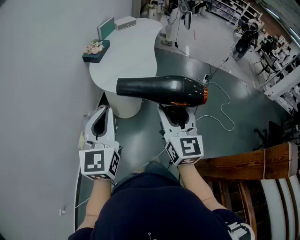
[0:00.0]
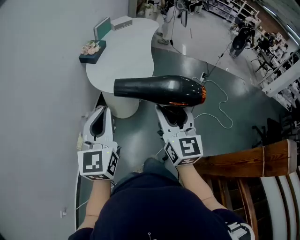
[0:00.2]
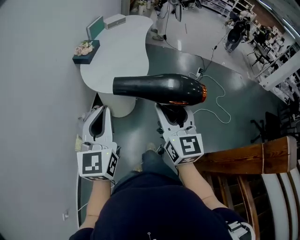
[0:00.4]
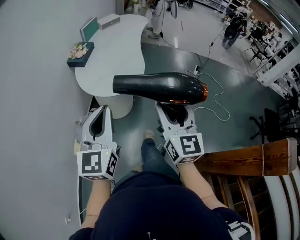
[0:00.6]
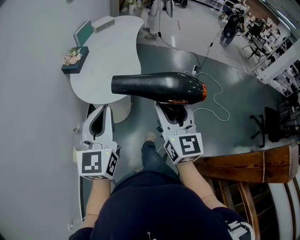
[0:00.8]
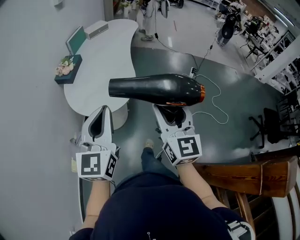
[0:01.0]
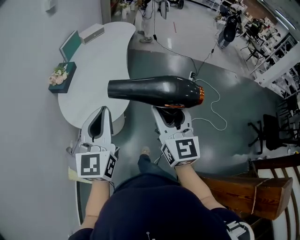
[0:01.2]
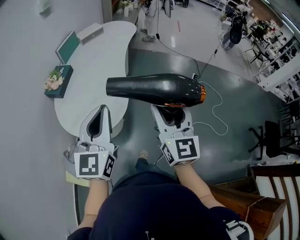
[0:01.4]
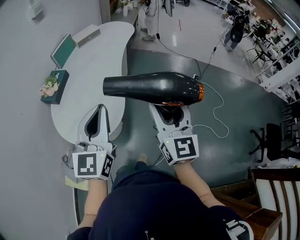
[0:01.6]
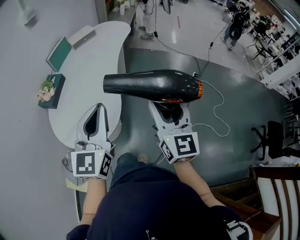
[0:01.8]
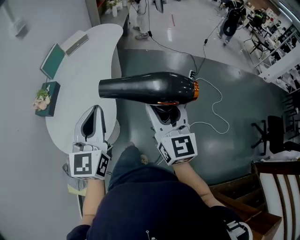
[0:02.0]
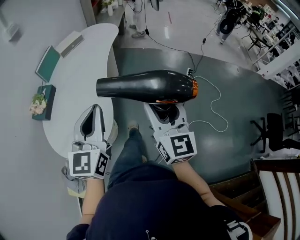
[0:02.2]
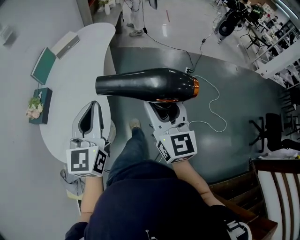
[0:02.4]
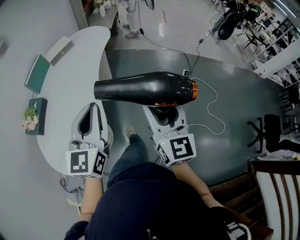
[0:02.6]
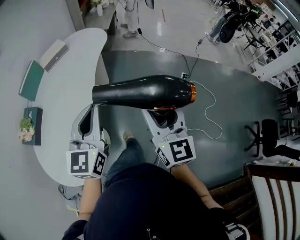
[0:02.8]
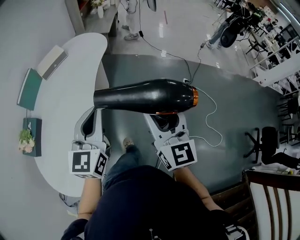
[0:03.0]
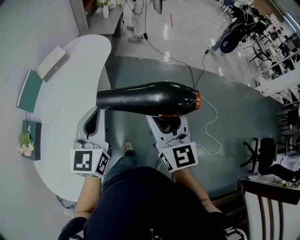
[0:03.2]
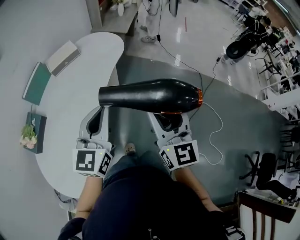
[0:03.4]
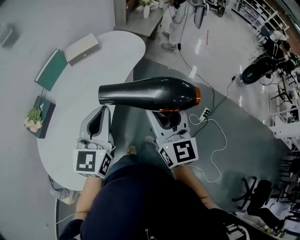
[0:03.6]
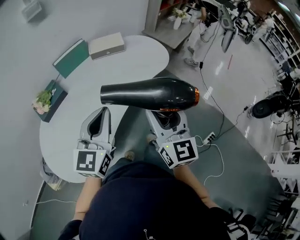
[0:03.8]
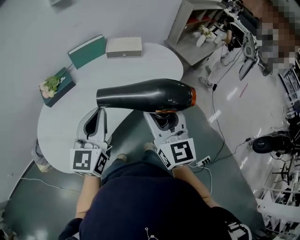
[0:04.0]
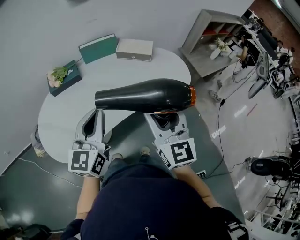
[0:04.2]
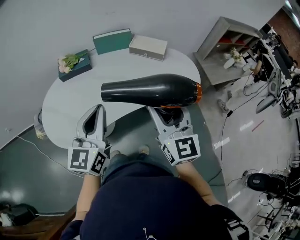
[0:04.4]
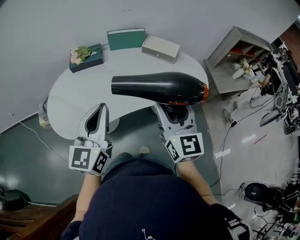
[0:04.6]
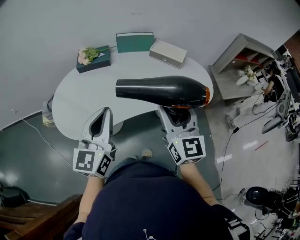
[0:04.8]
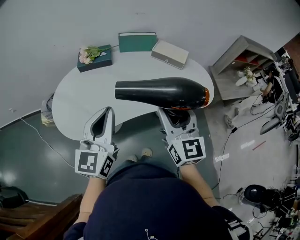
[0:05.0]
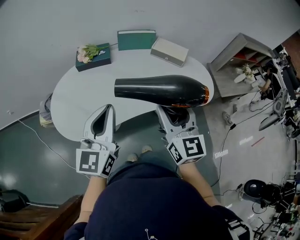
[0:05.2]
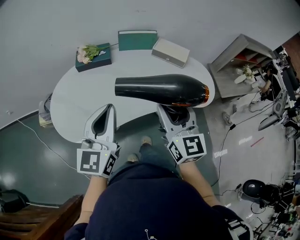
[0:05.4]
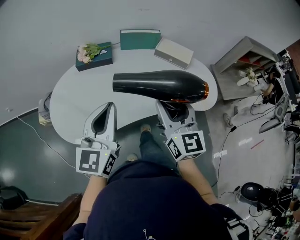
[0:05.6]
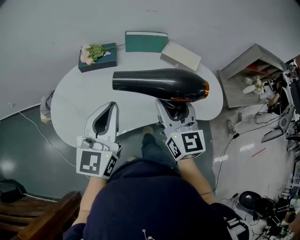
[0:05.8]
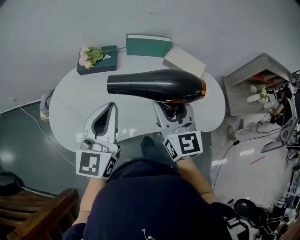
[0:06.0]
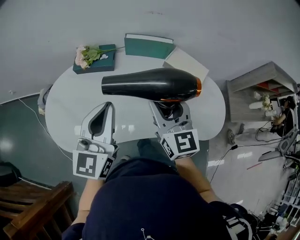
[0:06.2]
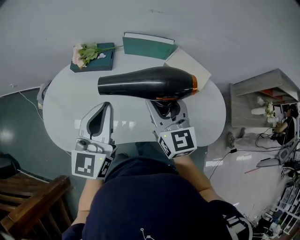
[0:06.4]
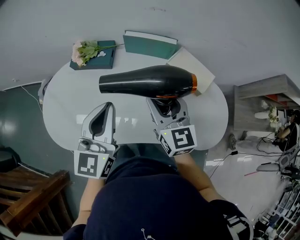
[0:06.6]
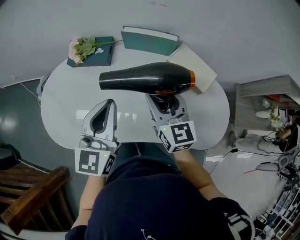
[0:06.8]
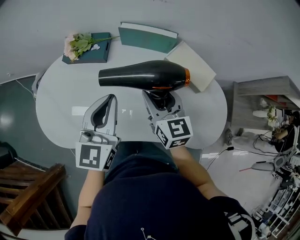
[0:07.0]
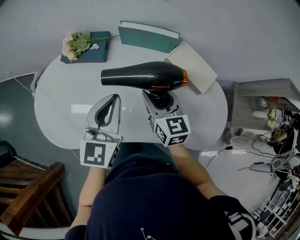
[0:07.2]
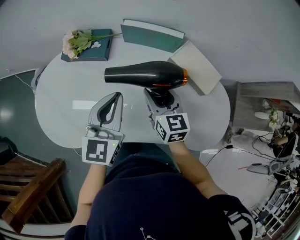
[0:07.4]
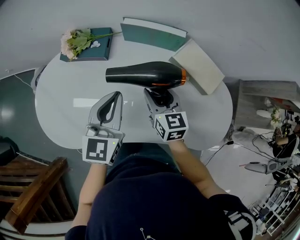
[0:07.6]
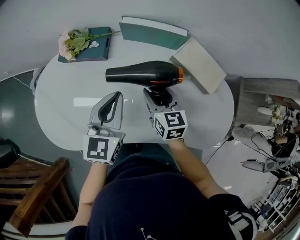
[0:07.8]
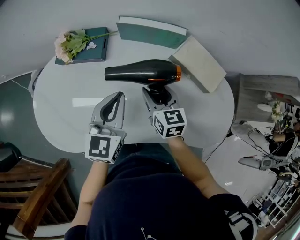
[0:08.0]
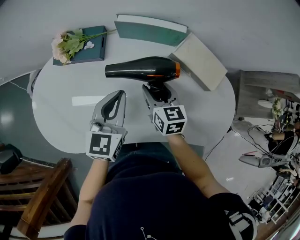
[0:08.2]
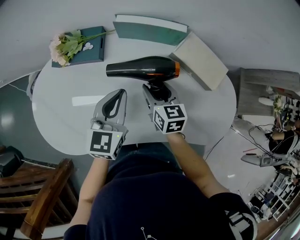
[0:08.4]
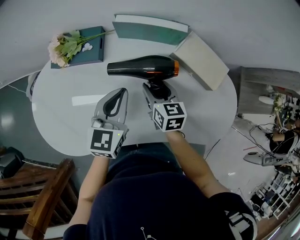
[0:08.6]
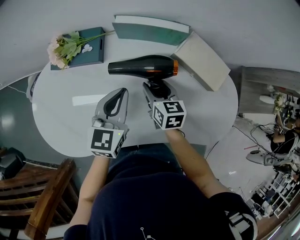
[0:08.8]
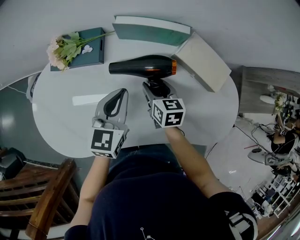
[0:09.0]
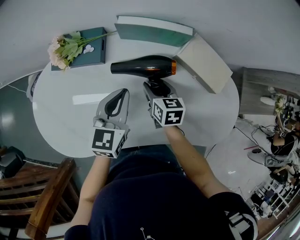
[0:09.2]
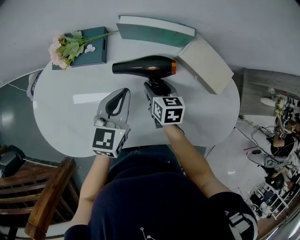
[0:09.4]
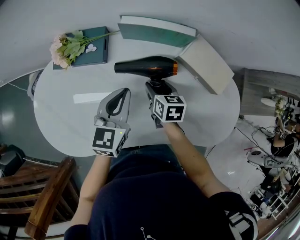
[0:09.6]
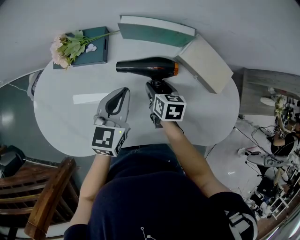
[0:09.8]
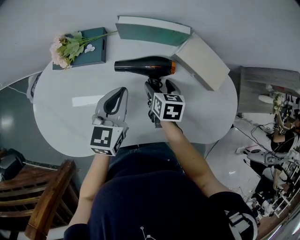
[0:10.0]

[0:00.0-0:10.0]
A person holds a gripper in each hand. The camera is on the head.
0:00.0 to 0:01.4: Both grippers move forward and to the right, some 35 cm.
0:01.4 to 0:02.8: The grippers both shift forward and to the right by about 30 cm.
0:02.8 to 0:04.2: The right gripper changes place by approximately 35 cm, and rotates about 60 degrees. Meanwhile the left gripper moves approximately 20 cm, and rotates some 60 degrees.
0:04.2 to 0:05.8: The right gripper is displaced forward and to the left by about 15 cm. Meanwhile the left gripper is displaced to the left by some 5 cm.
0:05.8 to 0:07.2: The left gripper heads forward, to the right and downward, covering some 25 cm. Meanwhile the right gripper goes about 25 cm forward and downward, and swivels about 30 degrees.
0:07.2 to 0:08.6: The right gripper travels downward by roughly 10 cm; the left gripper shifts roughly 10 cm downward and forward.
0:08.6 to 0:10.0: There are only small adjustments of the grippers.

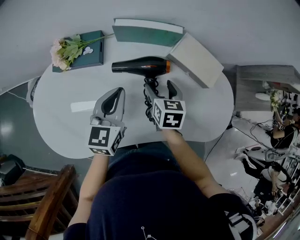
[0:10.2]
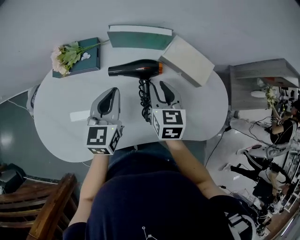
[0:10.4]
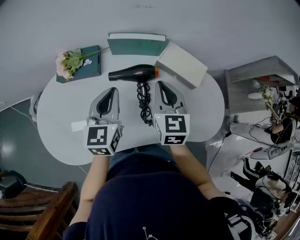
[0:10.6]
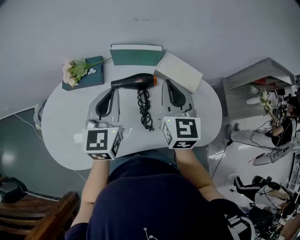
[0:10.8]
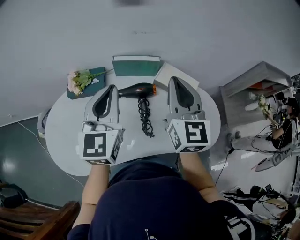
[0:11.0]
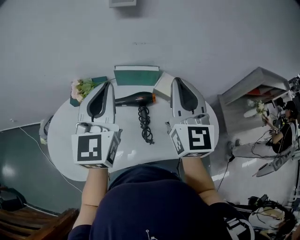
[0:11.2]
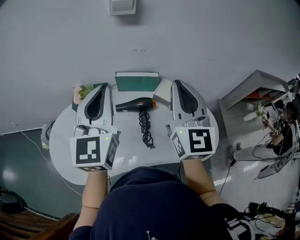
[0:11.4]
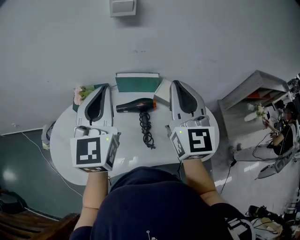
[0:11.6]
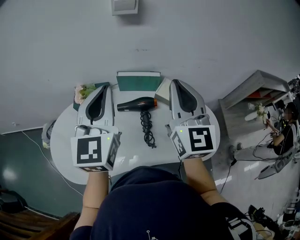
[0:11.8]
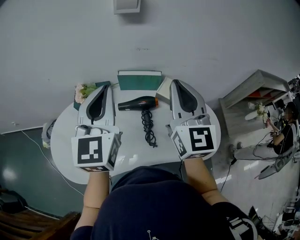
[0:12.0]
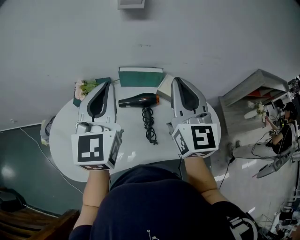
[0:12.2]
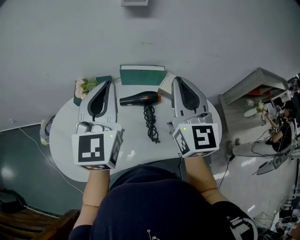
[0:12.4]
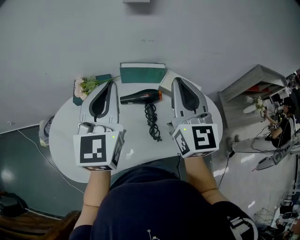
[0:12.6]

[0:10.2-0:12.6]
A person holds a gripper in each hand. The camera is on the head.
0:10.2 to 0:11.4: Both grippers travel together upward, approximately 35 cm. The left gripper swivels approximately 30 degrees. The right gripper tilts its fingers about 50 degrees upward, and closes its fingers.
0:11.4 to 0:12.6: The right gripper shifts by roughly 5 cm.

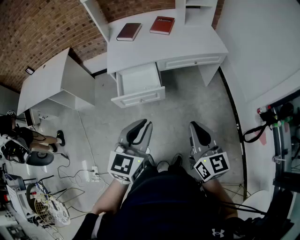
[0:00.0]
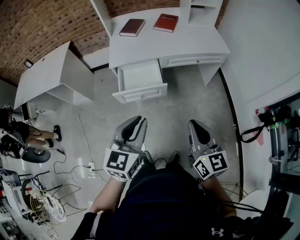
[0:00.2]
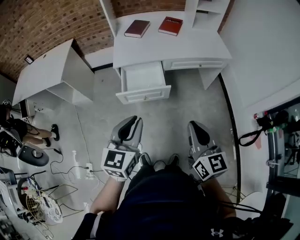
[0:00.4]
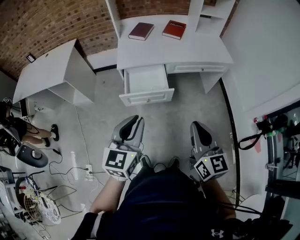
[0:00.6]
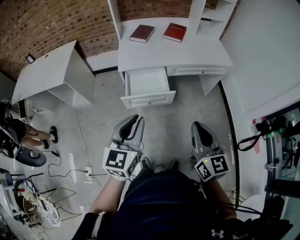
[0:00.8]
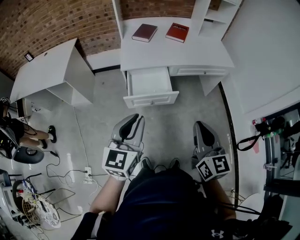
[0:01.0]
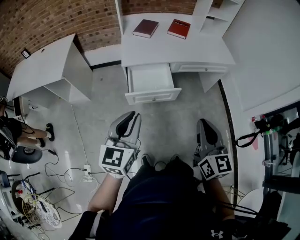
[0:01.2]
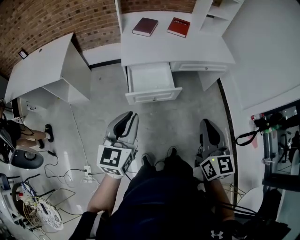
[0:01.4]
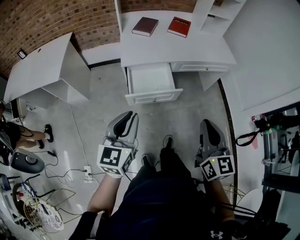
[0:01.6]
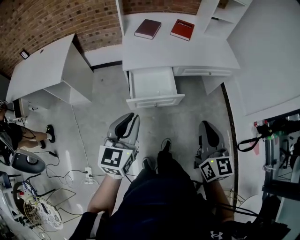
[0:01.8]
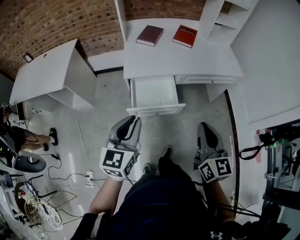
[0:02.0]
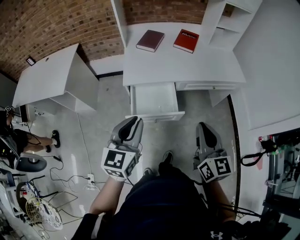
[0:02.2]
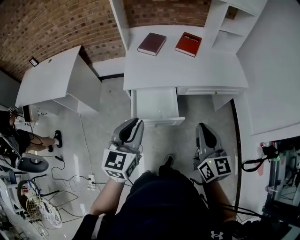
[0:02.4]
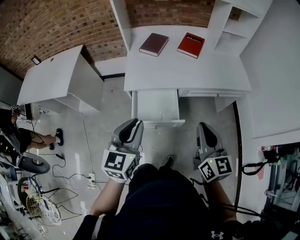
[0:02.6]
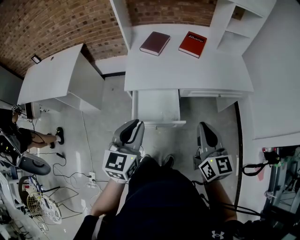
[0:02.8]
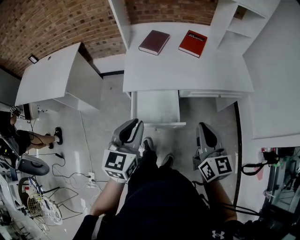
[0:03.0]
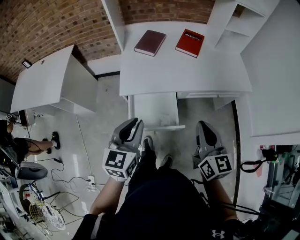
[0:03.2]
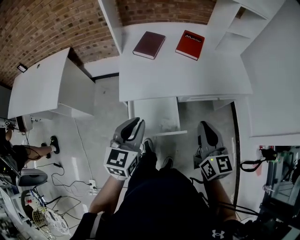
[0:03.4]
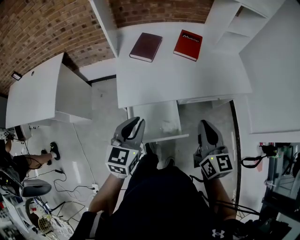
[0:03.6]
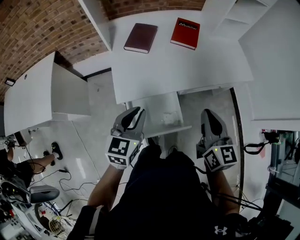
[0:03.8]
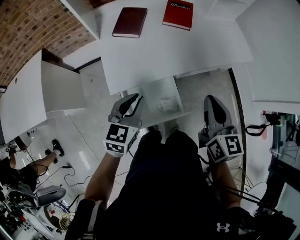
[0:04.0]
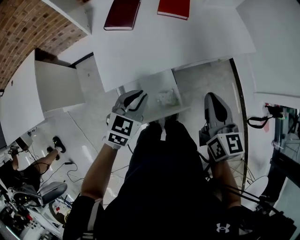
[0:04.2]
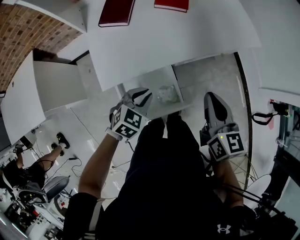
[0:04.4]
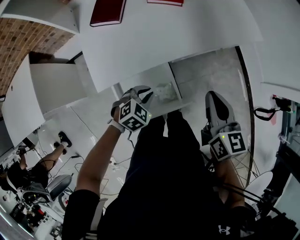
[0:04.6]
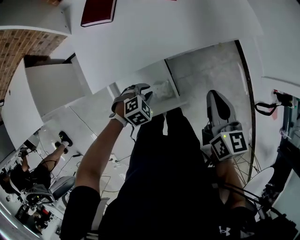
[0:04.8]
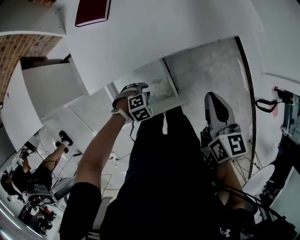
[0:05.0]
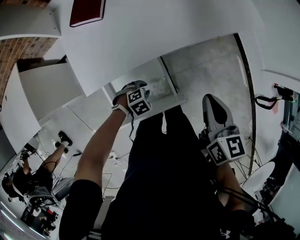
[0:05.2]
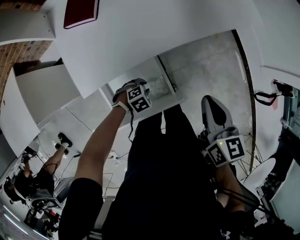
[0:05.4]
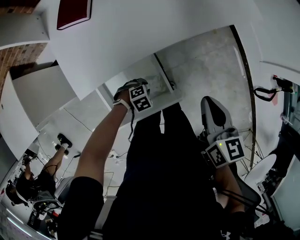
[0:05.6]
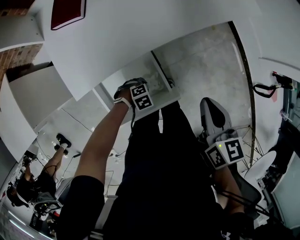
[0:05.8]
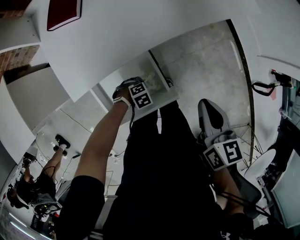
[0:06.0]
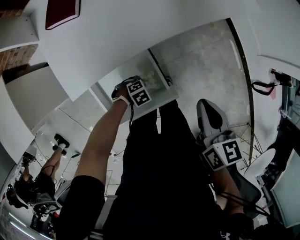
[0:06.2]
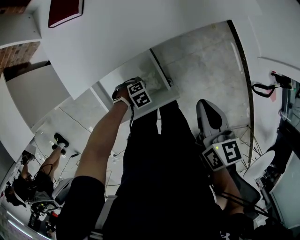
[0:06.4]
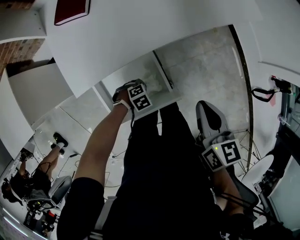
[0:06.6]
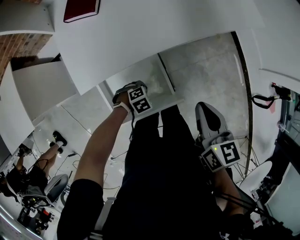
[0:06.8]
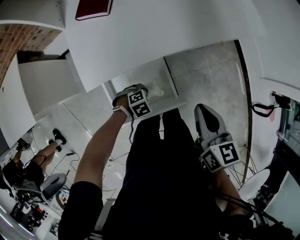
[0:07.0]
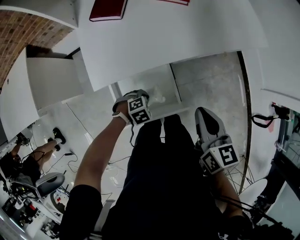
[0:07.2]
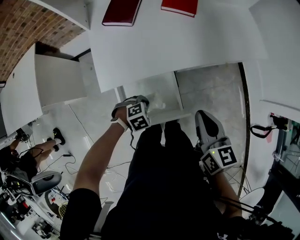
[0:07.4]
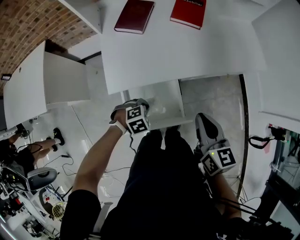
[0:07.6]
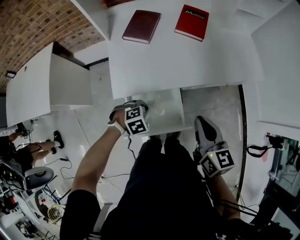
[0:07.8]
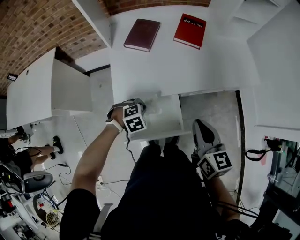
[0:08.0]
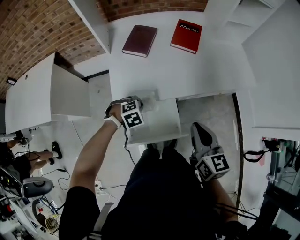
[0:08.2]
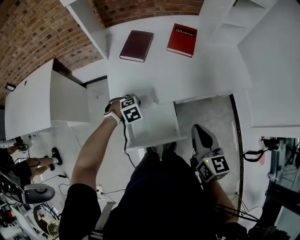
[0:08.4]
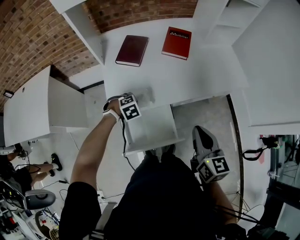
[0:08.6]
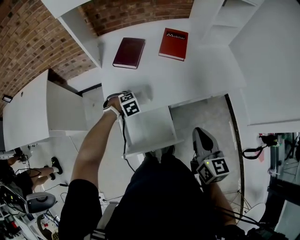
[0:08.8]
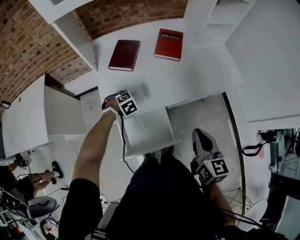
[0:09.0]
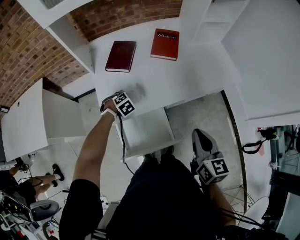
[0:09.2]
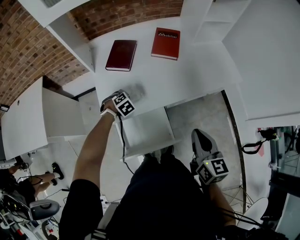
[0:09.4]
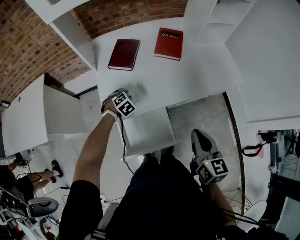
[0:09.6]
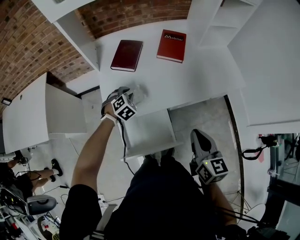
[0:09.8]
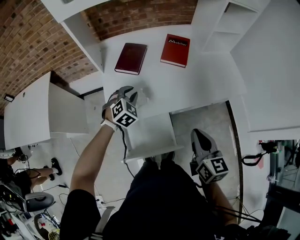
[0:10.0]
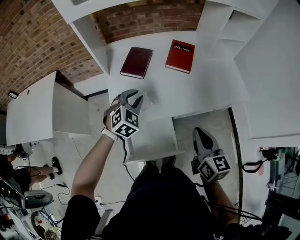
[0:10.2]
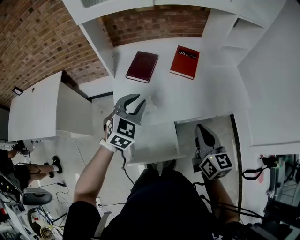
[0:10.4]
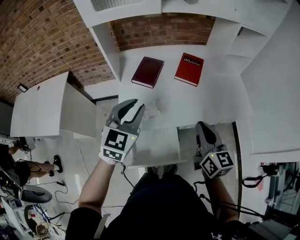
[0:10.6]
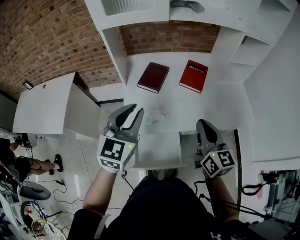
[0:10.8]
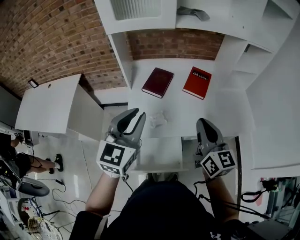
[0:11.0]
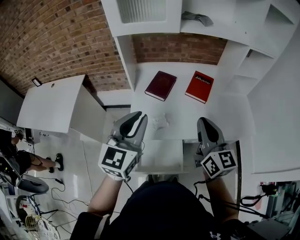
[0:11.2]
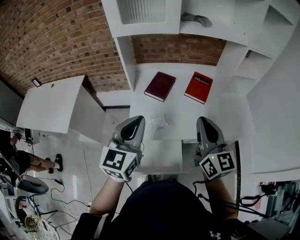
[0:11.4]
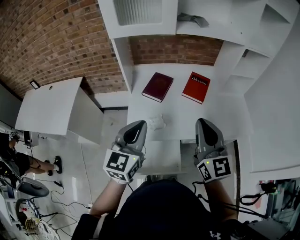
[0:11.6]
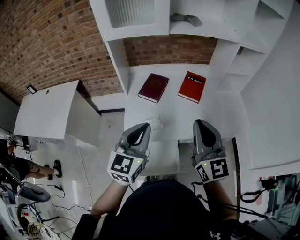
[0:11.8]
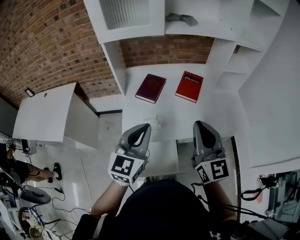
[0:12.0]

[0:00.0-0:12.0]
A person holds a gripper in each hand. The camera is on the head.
0:00.0 to 0:01.6: The left gripper moves to the left, about 25 cm. The right gripper moves to the left, roughly 15 cm.
0:01.6 to 0:03.0: The grippers both shift forward by approximately 20 cm.
0:03.0 to 0:04.4: The right gripper moves approximately 20 cm, and rotates approximately 20 degrees; the left gripper goes about 25 cm downward, and angles its fingers downward, by approximately 30 degrees.
0:04.4 to 0:06.0: The right gripper travels downward by approximately 10 cm, while the left gripper moves downward, roughly 30 cm, and tilts its fingers roughly 30 degrees downward.
0:06.0 to 0:07.6: The left gripper goes about 20 cm upward, rotates roughly 20 degrees, and closes. Meanwhile the right gripper ends up some 10 cm from where it was, and turns by roughly 20 degrees.
0:07.6 to 0:09.0: The left gripper moves about 20 cm. Meanwhile the right gripper heads upward, covering some 5 cm.
0:09.0 to 0:10.4: The right gripper is displaced forward by about 5 cm. The left gripper goes roughly 25 cm upward, points its fingers about 40 degrees further upward, and opens up.
0:10.4 to 0:12.0: The right gripper moves upward, some 15 cm, and changes its angle by approximately 30 degrees. Meanwhile the left gripper shifts some 15 cm upward and backward, turns by roughly 30 degrees, and closes up.
